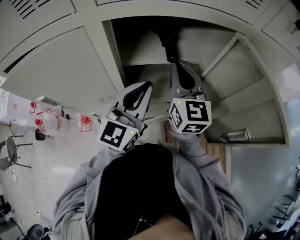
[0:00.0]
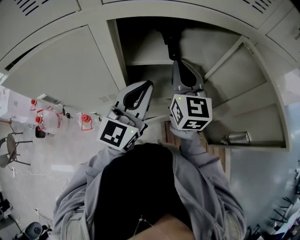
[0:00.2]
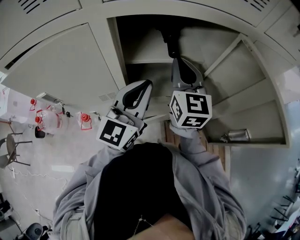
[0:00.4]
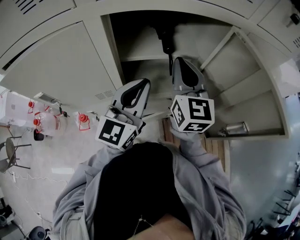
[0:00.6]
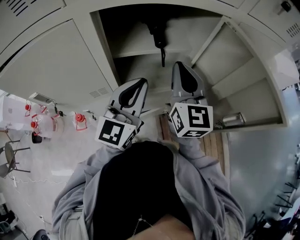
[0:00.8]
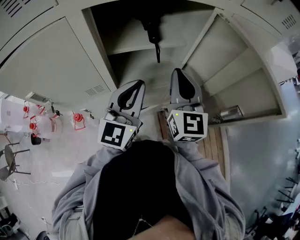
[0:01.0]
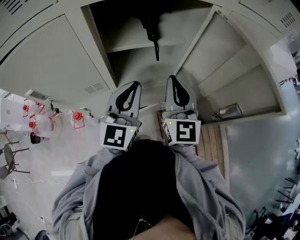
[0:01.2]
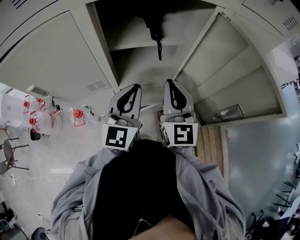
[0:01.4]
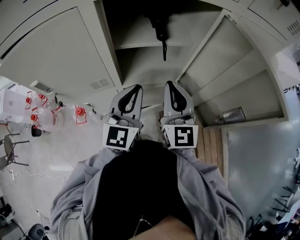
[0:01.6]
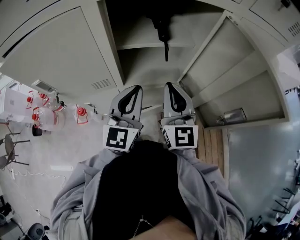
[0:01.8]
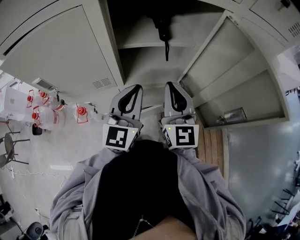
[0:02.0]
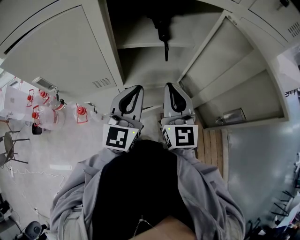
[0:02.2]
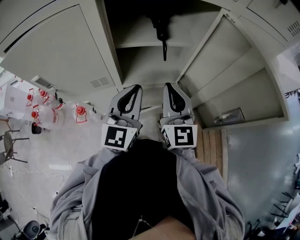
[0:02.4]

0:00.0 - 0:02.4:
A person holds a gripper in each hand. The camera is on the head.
0:00.0 - 0:01.2: The left gripper shifts by about 5 cm, while the right gripper goes about 10 cm backward.
0:01.2 - 0:02.4: The grippers make only small movements.

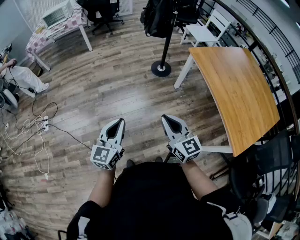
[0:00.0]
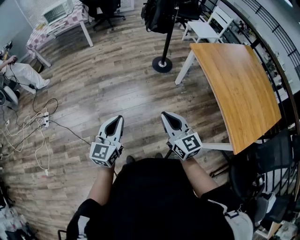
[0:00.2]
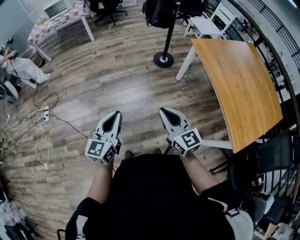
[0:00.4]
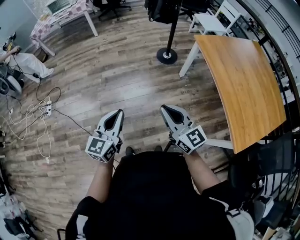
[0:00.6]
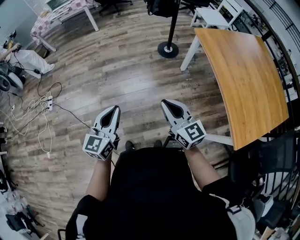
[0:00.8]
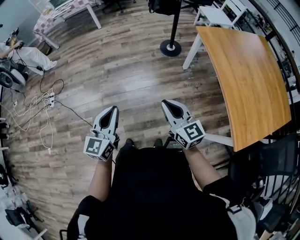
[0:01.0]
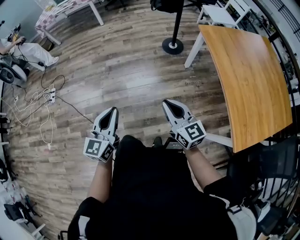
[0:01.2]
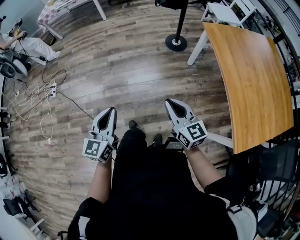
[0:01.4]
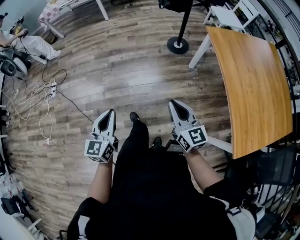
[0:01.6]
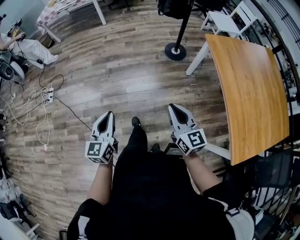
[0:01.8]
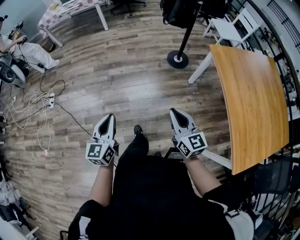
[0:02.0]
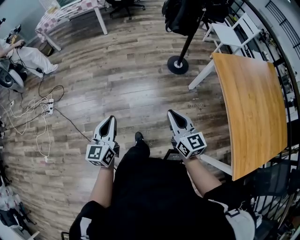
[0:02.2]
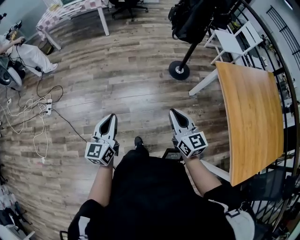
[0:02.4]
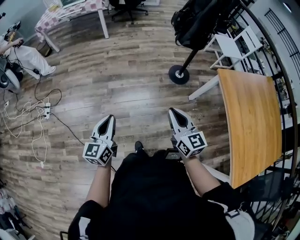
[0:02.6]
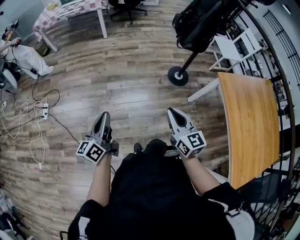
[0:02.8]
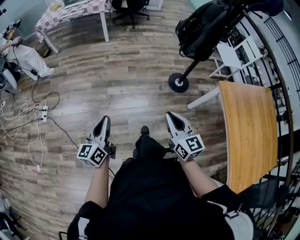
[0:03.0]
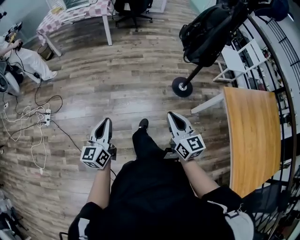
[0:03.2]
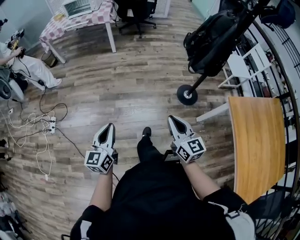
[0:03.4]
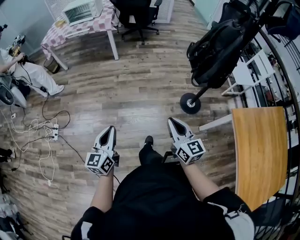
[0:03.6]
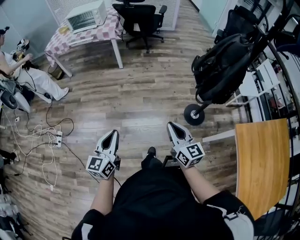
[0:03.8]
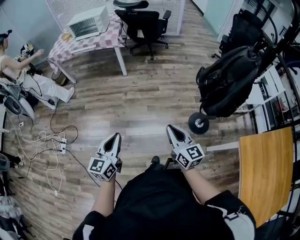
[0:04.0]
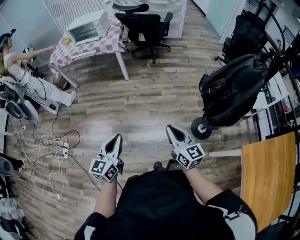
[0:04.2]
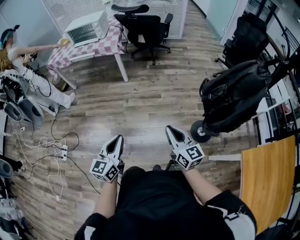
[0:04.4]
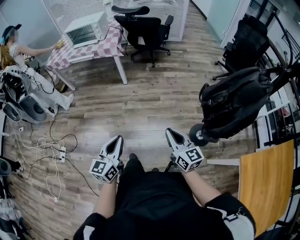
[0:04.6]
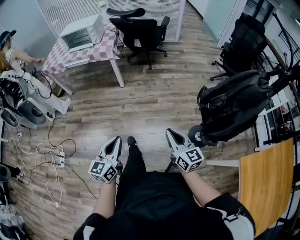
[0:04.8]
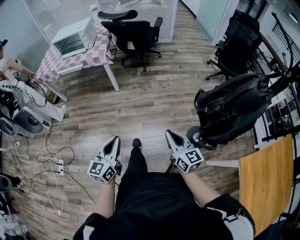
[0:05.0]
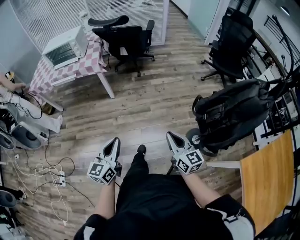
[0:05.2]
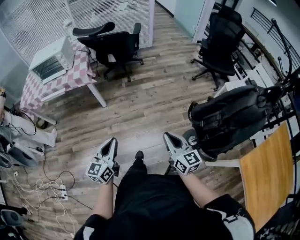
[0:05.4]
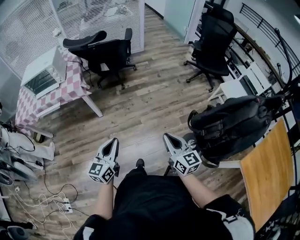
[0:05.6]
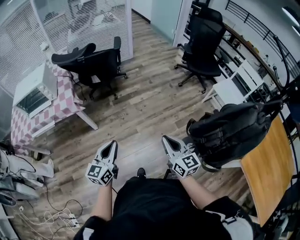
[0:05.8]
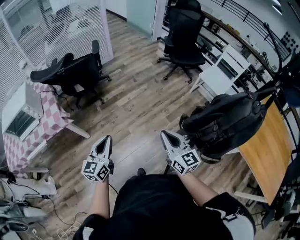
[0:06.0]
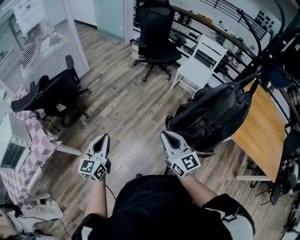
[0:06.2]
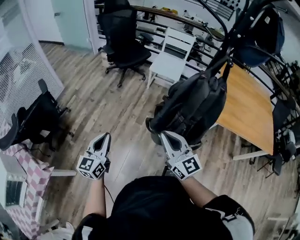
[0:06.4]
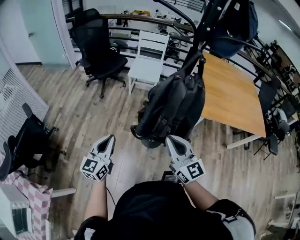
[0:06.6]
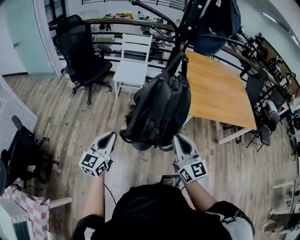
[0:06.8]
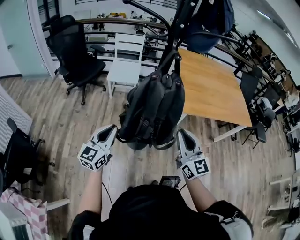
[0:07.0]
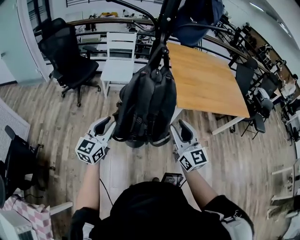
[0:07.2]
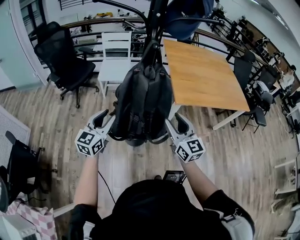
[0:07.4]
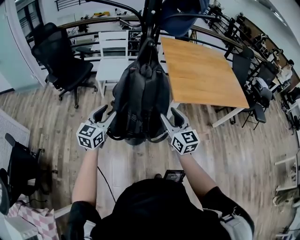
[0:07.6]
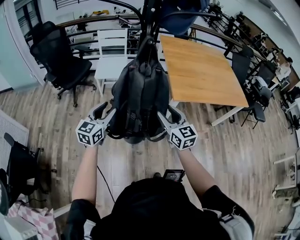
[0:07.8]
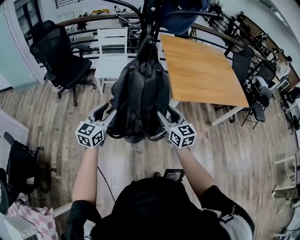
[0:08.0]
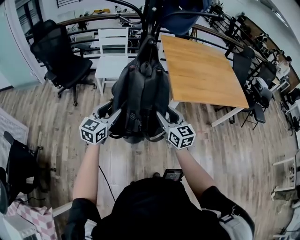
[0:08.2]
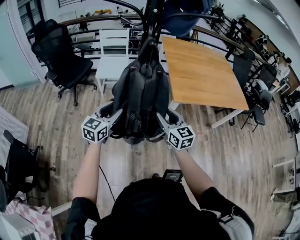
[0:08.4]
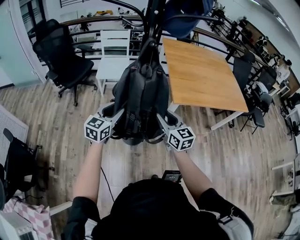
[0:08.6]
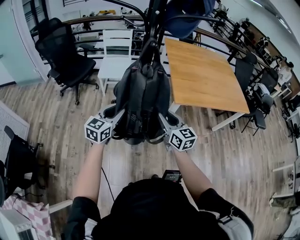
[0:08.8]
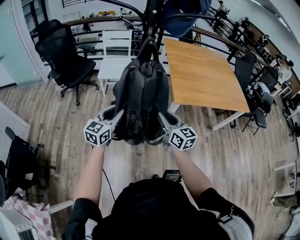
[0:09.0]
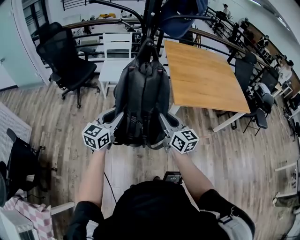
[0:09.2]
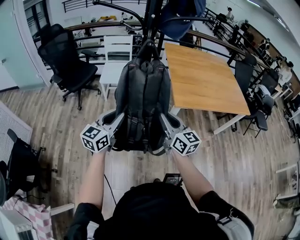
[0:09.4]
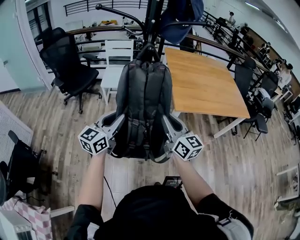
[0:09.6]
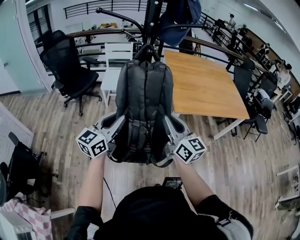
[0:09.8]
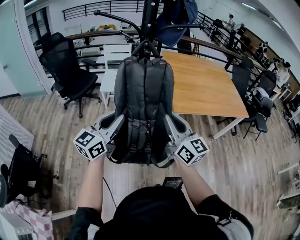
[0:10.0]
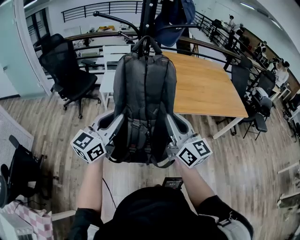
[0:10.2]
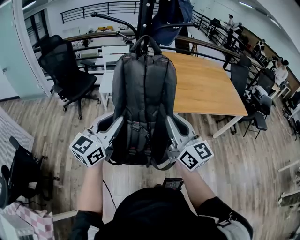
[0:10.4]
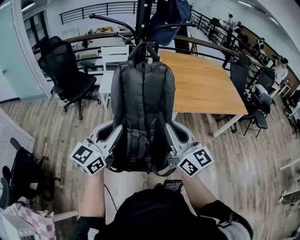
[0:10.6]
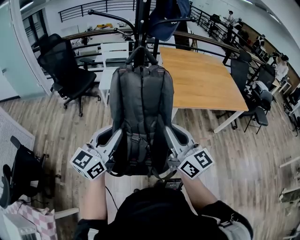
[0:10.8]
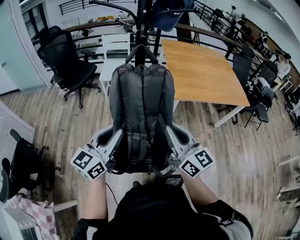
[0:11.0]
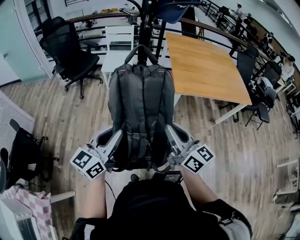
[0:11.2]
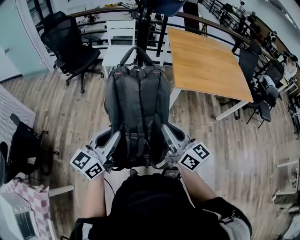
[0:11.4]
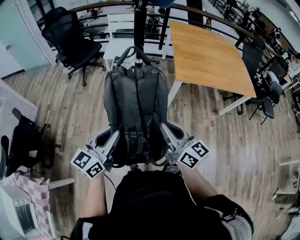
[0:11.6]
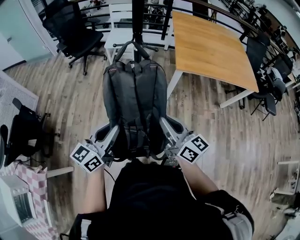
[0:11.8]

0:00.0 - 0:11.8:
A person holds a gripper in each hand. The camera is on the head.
0:00.0 - 0:01.4: The right gripper travels to the right and downward by about 10 cm; the left gripper goes roughly 5 cm backward.
0:01.4 - 0:03.0: The right gripper goes roughly 30 cm forward; the left gripper goes approximately 35 cm forward and to the left, and swivels approximately 20 degrees.
0:03.0 - 0:04.4: Both grippers travel together forward, approximately 40 cm.
0:04.4 - 0:06.0: The left gripper changes place by roughly 50 cm, and rotates roughly 30 degrees, while the right gripper changes place by some 30 cm, and rotates approximately 40 degrees.
0:06.0 - 0:07.4: The left gripper moves about 40 cm, swivels approximately 70 degrees, and opens up; the right gripper shifts by roughly 35 cm, changes its angle by approximately 60 degrees, and opens.
0:07.4 - 0:08.8: The left gripper travels to the right by approximately 5 cm; the right gripper shifts some 5 cm downward.
0:08.8 - 0:10.4: Both grippers travel together upward and backward, approximately 20 cm. The right gripper rotates some 20 degrees, and closes its fingers.
0:10.4 - 0:11.8: The right gripper shifts approximately 20 cm downward and backward, and rotates approximately 30 degrees. Meanwhile the left gripper goes some 25 cm backward and downward.

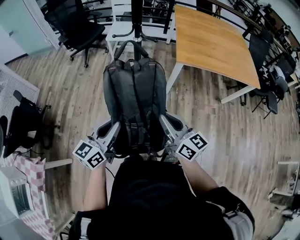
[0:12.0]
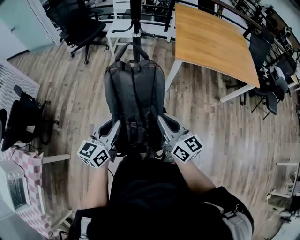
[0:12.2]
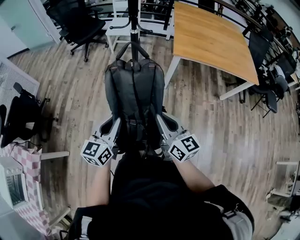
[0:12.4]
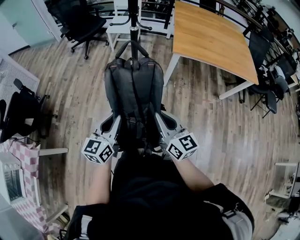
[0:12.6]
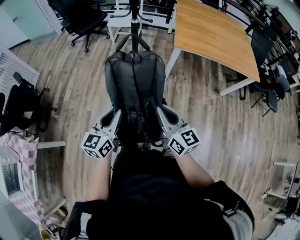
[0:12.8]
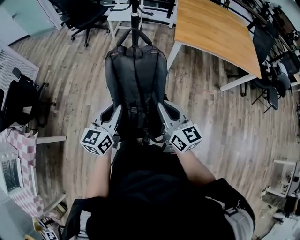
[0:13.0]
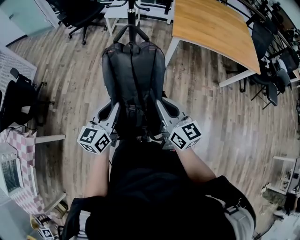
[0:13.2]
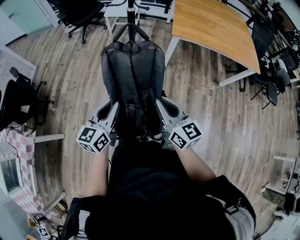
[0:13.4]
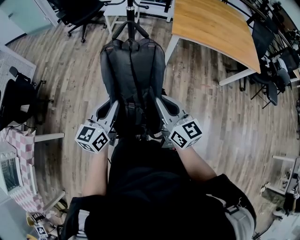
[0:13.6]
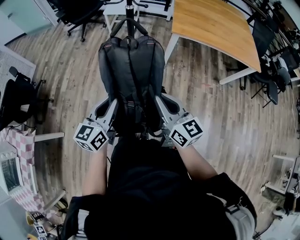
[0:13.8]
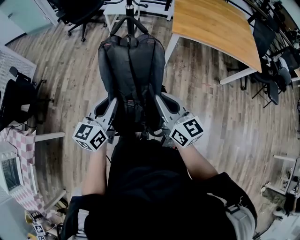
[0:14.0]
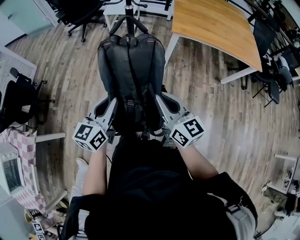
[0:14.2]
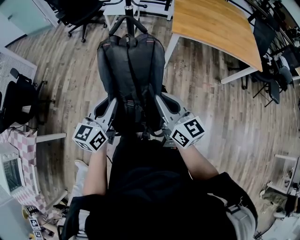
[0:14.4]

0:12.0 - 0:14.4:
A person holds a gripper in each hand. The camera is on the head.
0:12.0 - 0:13.2: The grippers both shift backward by some 5 cm.
0:13.2 - 0:14.4: The grippers stay close to where they were, moving slightly.

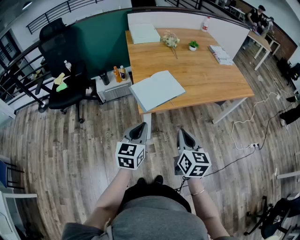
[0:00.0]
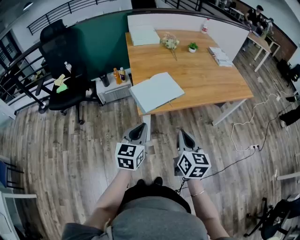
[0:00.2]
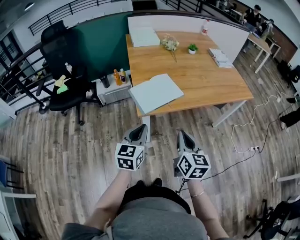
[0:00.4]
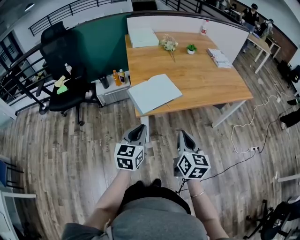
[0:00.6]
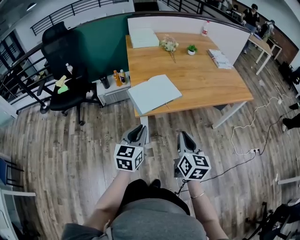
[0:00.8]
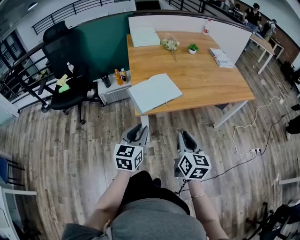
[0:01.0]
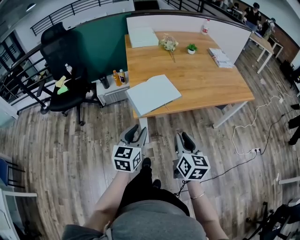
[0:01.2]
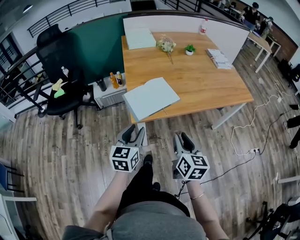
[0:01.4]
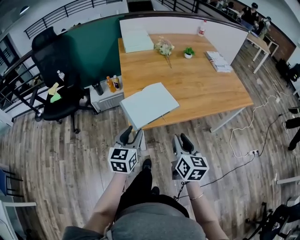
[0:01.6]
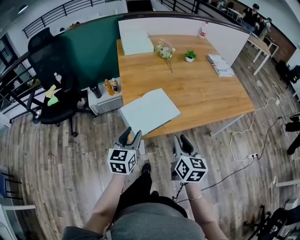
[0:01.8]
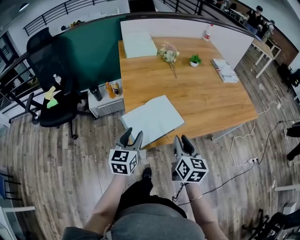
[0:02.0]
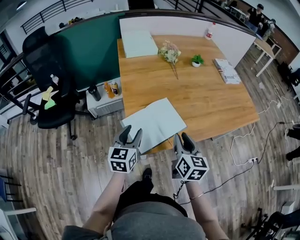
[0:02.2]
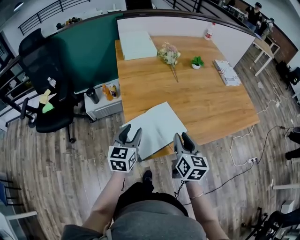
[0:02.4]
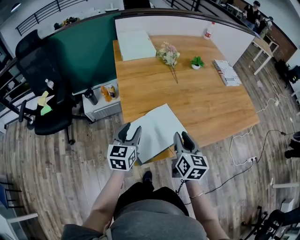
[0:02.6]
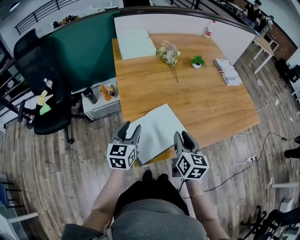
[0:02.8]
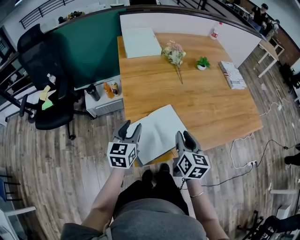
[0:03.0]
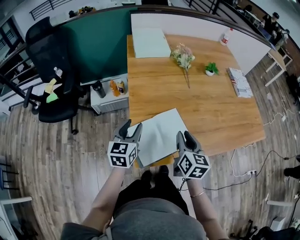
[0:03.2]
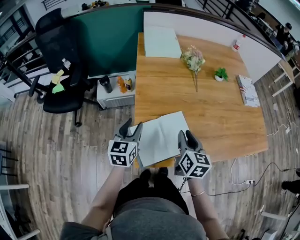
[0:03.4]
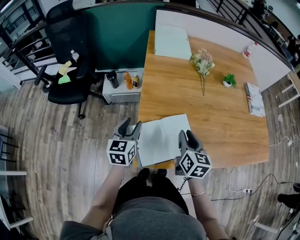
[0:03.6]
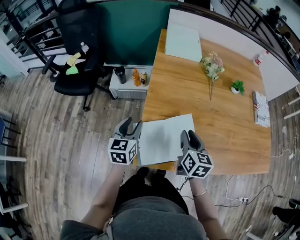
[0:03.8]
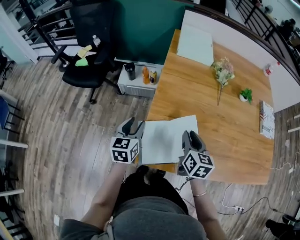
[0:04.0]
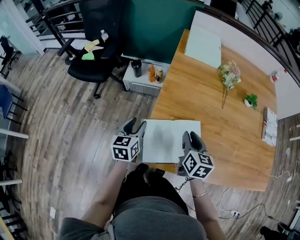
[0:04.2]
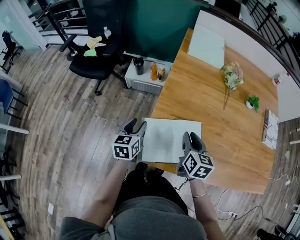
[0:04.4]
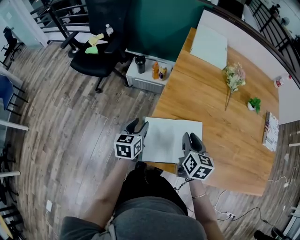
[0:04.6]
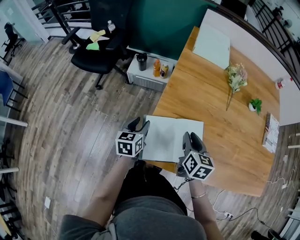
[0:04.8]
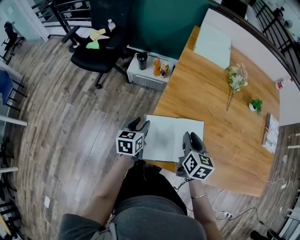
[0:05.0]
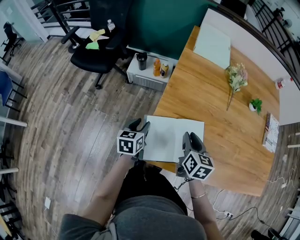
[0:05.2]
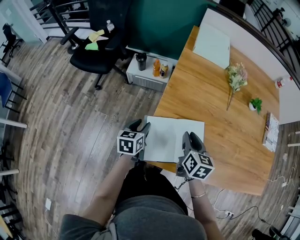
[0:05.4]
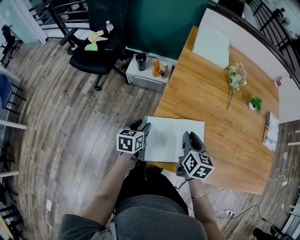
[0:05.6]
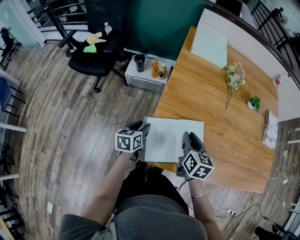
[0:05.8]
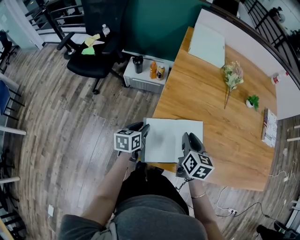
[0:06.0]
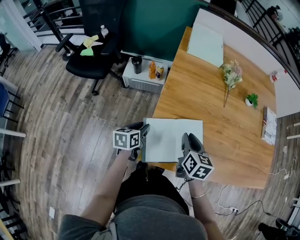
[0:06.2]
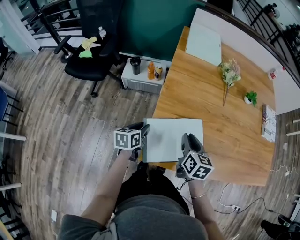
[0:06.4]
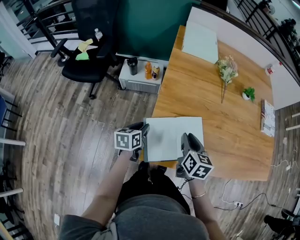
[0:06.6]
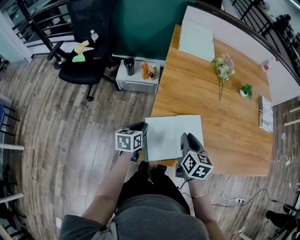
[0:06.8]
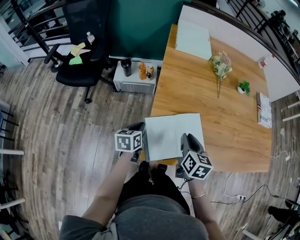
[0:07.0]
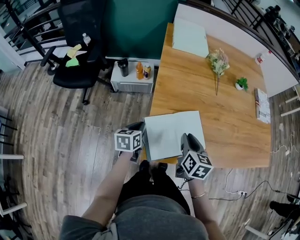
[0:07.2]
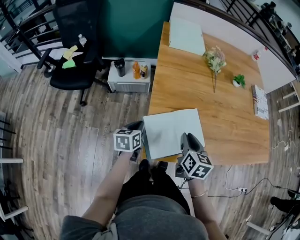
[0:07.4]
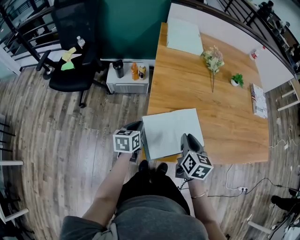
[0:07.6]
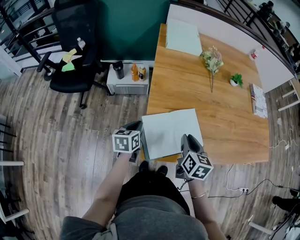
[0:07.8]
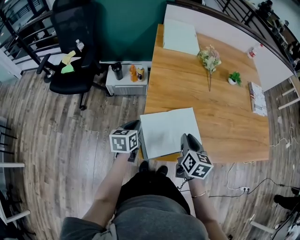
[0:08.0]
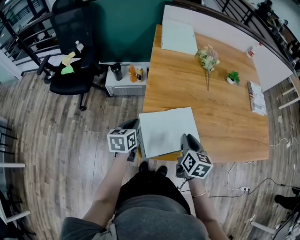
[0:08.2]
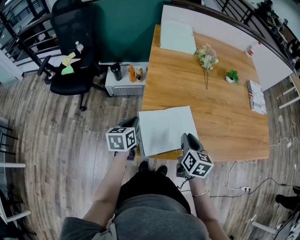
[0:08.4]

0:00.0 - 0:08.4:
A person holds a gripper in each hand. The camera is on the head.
0:00.0 - 0:01.4: The left gripper opens up. Meanwhile the right gripper ends up some 5 cm from where it was, and opens.
0:01.4 - 0:02.8: Both grippers move forward, some 25 cm.
0:02.8 - 0:04.2: The left gripper ends up about 10 cm from where it was, and rotates roughly 30 degrees, while the right gripper shifts by approximately 10 cm, and rotates about 30 degrees.
0:04.2 - 0:05.6: The left gripper goes approximately 5 cm downward.
0:05.6 - 0:07.0: The left gripper closes its fingers.
0:07.0 - 0:08.4: The right gripper shifts by about 5 cm, while the left gripper travels upward by about 5 cm.
